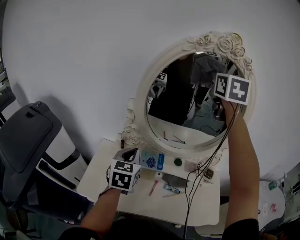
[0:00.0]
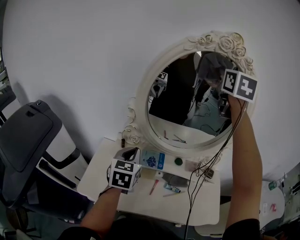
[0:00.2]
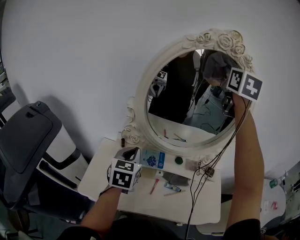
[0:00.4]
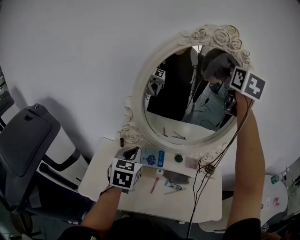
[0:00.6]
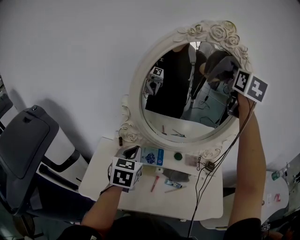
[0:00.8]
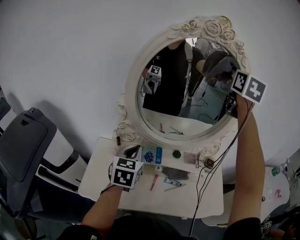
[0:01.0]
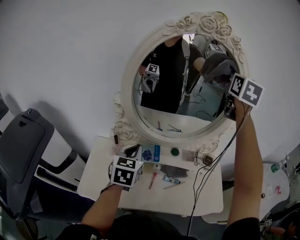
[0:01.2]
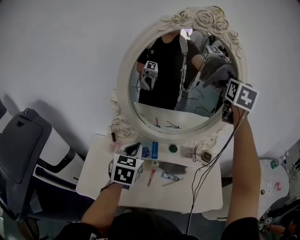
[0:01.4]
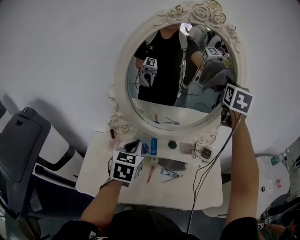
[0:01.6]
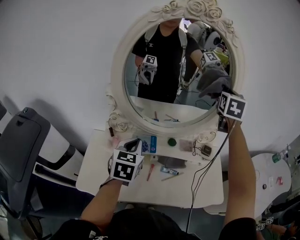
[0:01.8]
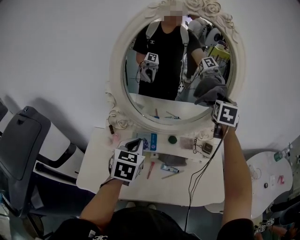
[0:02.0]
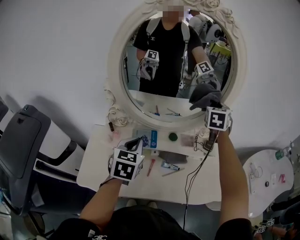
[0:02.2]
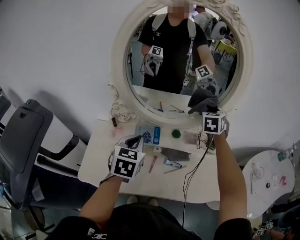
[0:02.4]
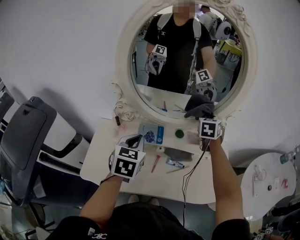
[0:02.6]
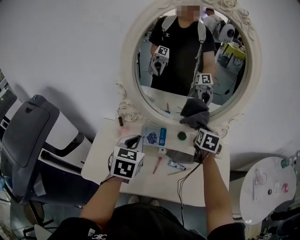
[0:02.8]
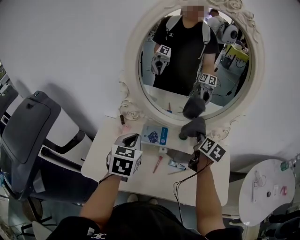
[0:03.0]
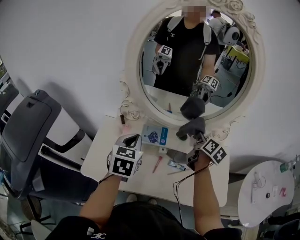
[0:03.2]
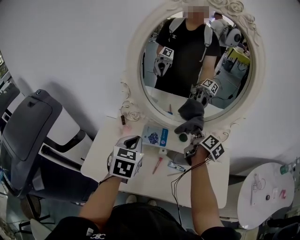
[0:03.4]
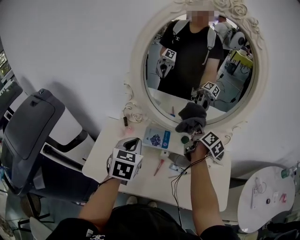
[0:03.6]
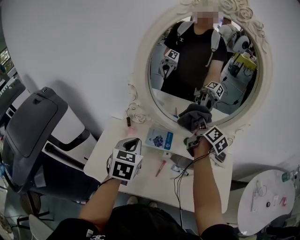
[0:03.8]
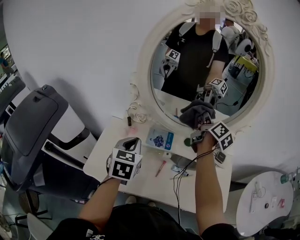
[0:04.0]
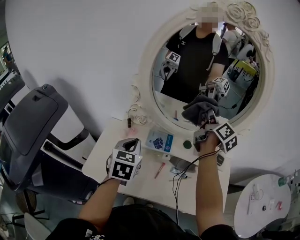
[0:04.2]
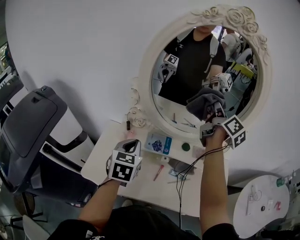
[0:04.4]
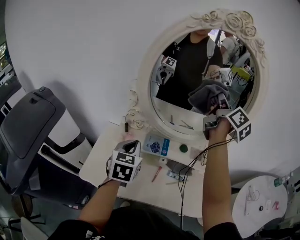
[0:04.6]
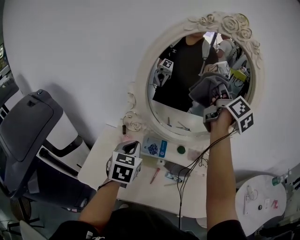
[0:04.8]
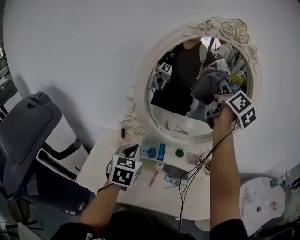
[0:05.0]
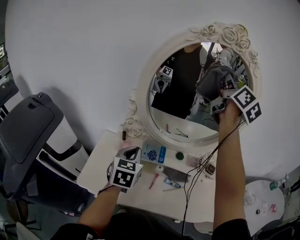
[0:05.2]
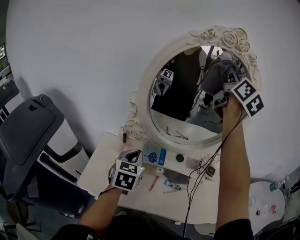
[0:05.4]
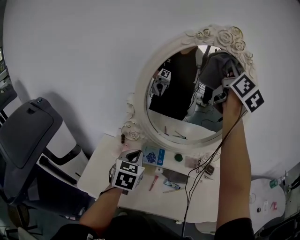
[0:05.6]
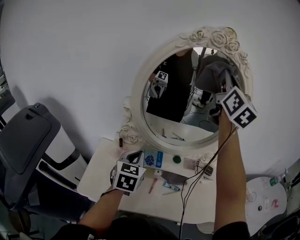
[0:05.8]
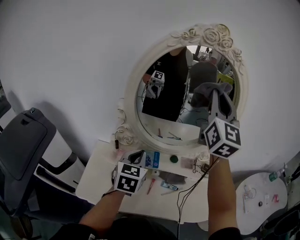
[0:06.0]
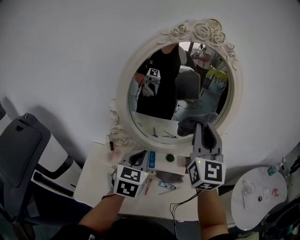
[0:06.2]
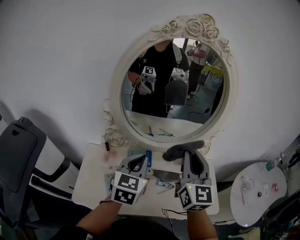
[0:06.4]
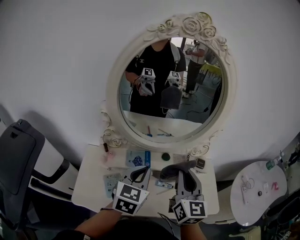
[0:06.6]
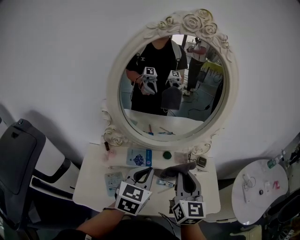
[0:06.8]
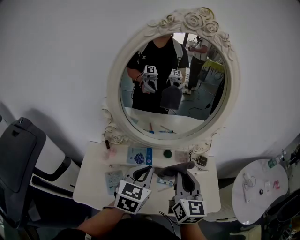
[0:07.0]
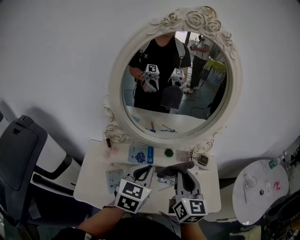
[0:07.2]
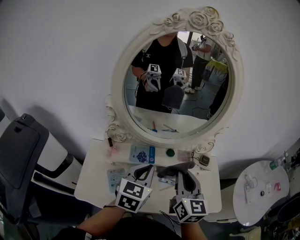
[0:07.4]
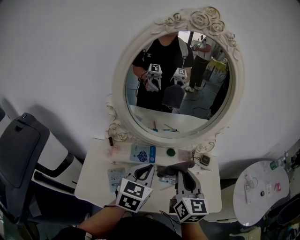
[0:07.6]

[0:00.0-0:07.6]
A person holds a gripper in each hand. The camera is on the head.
0:00.0 to 0:01.6: The left gripper goes approximately 5 cm to the right. The right gripper travels to the right and downward by some 20 cm, and turns by about 20 degrees.
0:01.6 to 0:03.0: The right gripper shifts some 35 cm downward, and changes its angle by about 40 degrees.
0:03.0 to 0:04.6: The right gripper goes some 30 cm upward, and tips its fingers upward by roughly 40 degrees.
0:04.6 to 0:06.0: The left gripper goes some 5 cm to the right; the right gripper heads upward and backward, covering about 15 cm, and rotates around the line of its fingers by some 60 degrees, counterclockwise from behind.
0:06.0 to 0:07.6: The left gripper travels to the right by approximately 10 cm; the right gripper shifts about 30 cm downward and backward, and swivels some 30 degrees.

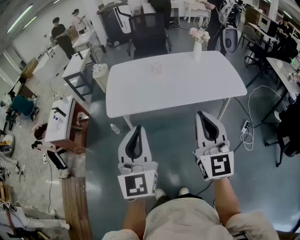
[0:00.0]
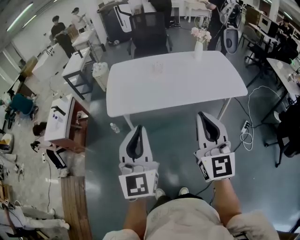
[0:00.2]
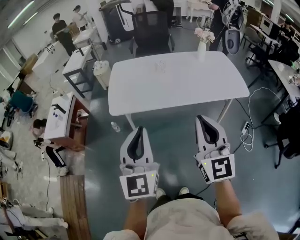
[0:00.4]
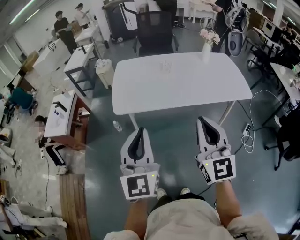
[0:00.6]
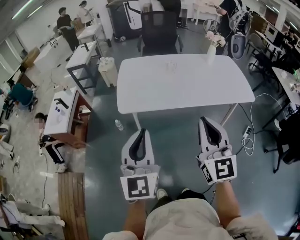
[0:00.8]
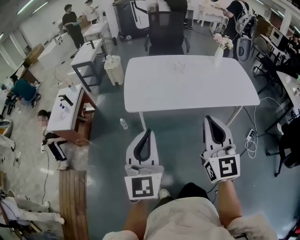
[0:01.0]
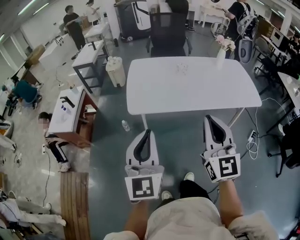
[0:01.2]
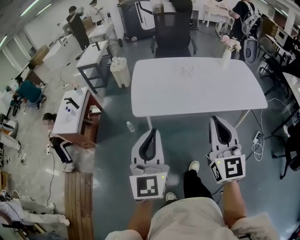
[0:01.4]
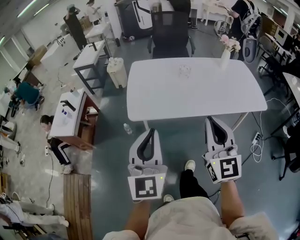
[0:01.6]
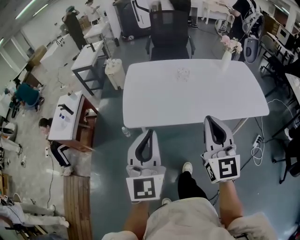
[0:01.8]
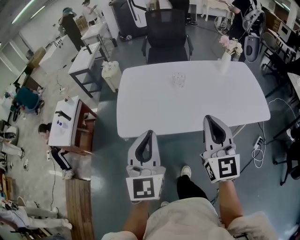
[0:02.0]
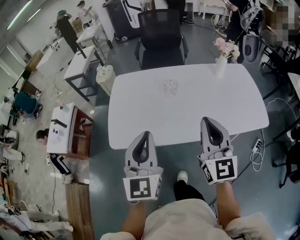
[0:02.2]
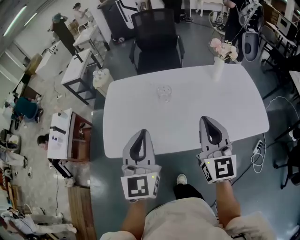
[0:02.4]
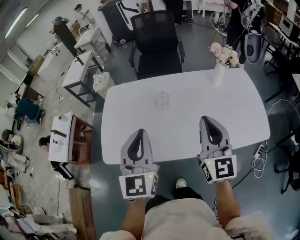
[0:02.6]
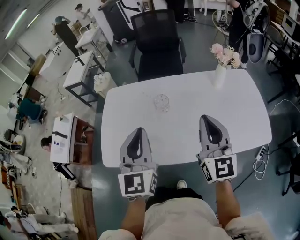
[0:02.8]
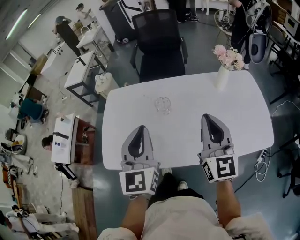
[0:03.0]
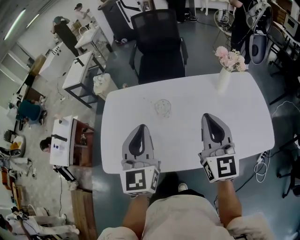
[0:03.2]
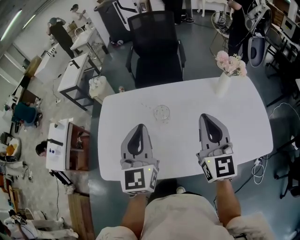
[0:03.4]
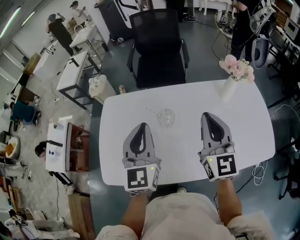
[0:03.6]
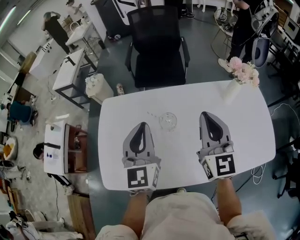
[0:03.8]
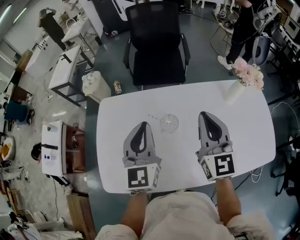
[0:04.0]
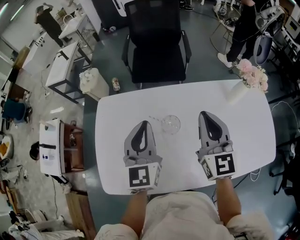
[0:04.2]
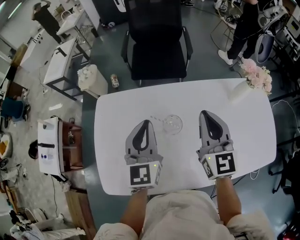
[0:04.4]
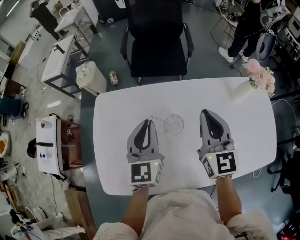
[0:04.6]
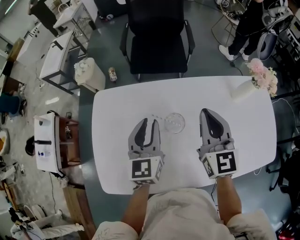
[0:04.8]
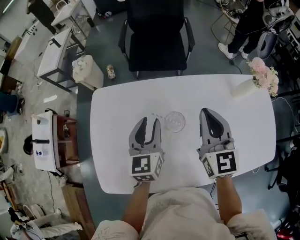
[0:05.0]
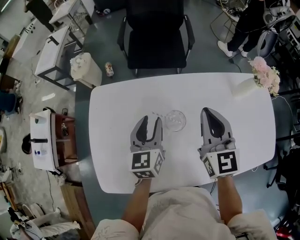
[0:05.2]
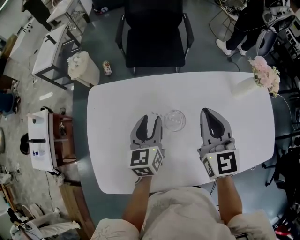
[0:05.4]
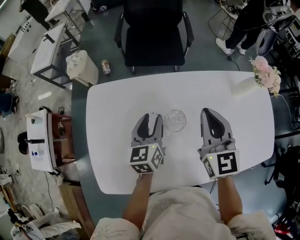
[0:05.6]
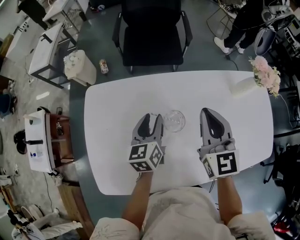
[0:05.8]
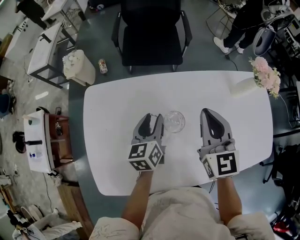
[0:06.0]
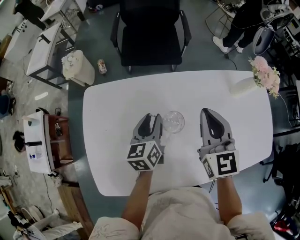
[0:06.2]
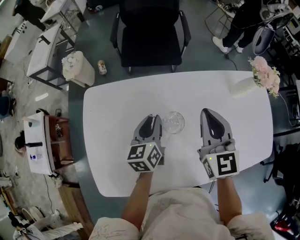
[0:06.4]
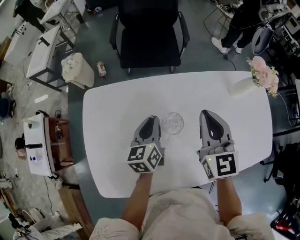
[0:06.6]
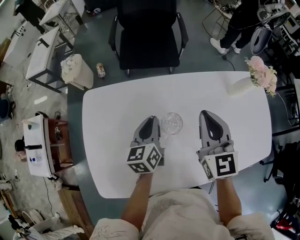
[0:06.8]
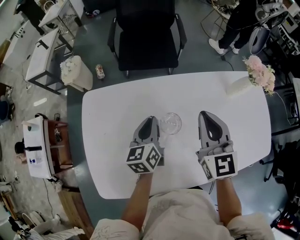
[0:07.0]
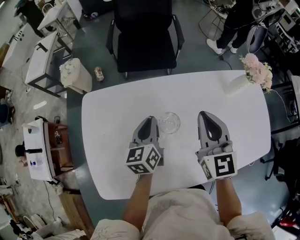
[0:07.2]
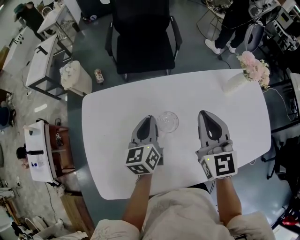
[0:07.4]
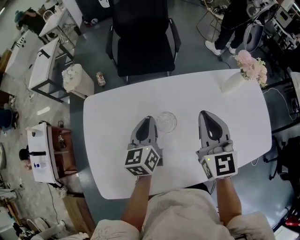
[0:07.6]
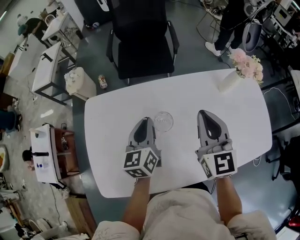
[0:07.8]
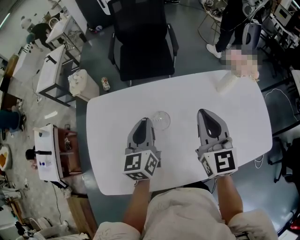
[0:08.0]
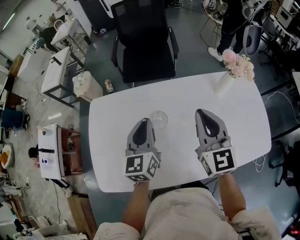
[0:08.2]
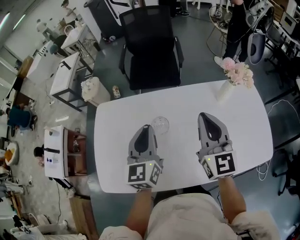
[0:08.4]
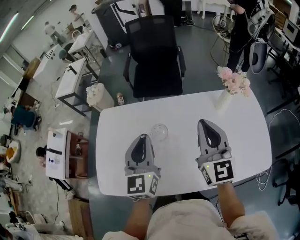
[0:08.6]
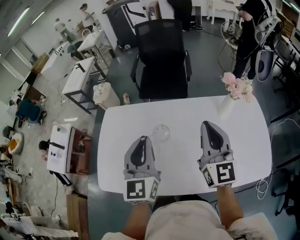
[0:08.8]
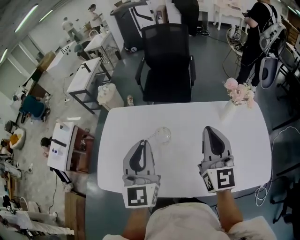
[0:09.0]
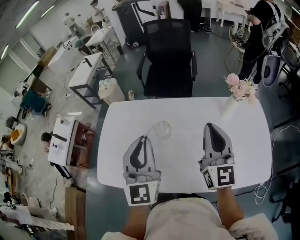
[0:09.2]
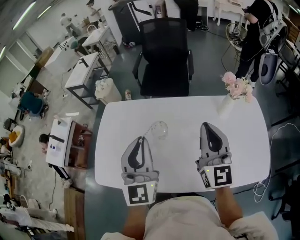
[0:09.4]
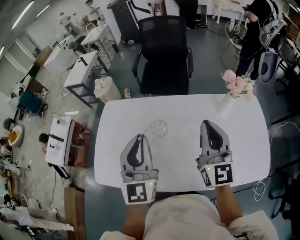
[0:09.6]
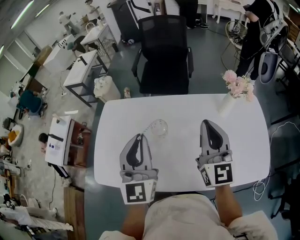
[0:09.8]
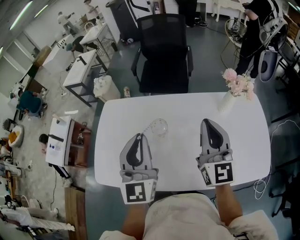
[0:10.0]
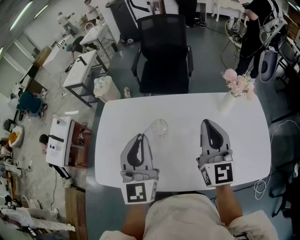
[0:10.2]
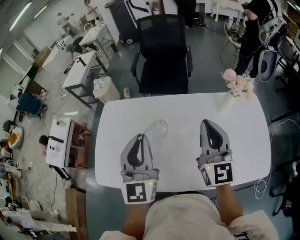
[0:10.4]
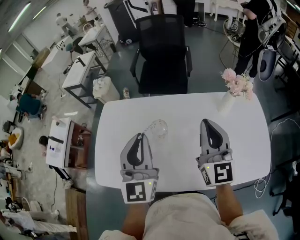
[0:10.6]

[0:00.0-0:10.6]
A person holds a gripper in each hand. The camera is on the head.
0:00.0 to 0:01.6: Both grippers travel together to the left and forward, about 15 cm.
0:01.6 to 0:03.0: The pair of grippers is taken forward and to the right, roughly 40 cm.
0:03.0 to 0:04.6: The right gripper moves forward, roughly 25 cm; the left gripper moves forward and downward, approximately 25 cm.
0:04.6 to 0:06.0: The left gripper travels downward by some 15 cm, turns by roughly 30 degrees, and opens its fingers.
0:06.0 to 0:07.6: The left gripper moves about 5 cm, and closes up. The right gripper moves some 5 cm.
0:07.6 to 0:09.0: The right gripper is displaced upward, to the right and backward by approximately 15 cm, and turns by roughly 20 degrees, while the left gripper is displaced upward and backward by about 25 cm, and swivels roughly 40 degrees.
0:09.0 to 0:10.6: The grippers make only small movements.

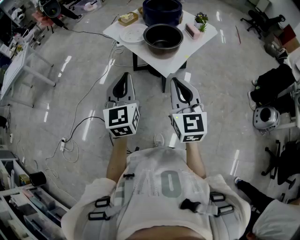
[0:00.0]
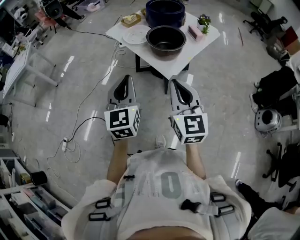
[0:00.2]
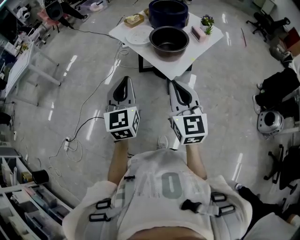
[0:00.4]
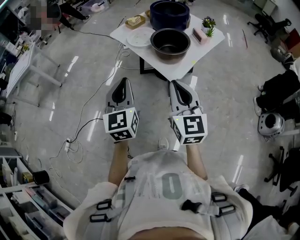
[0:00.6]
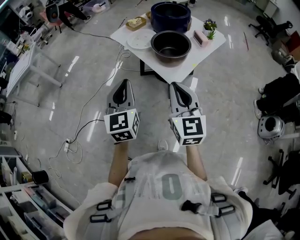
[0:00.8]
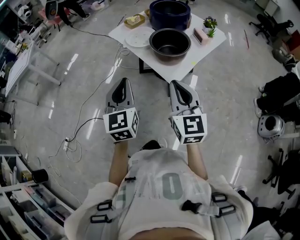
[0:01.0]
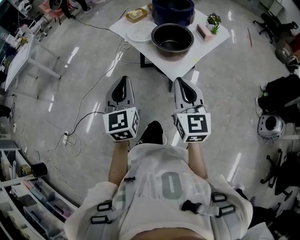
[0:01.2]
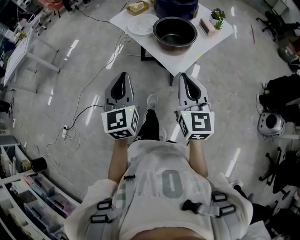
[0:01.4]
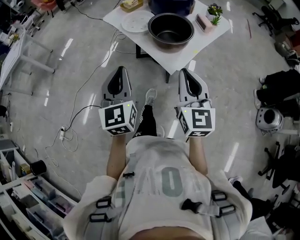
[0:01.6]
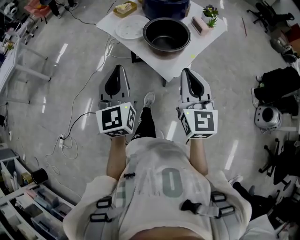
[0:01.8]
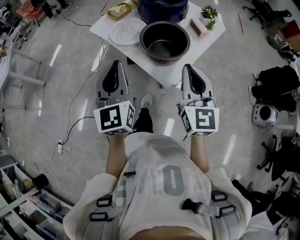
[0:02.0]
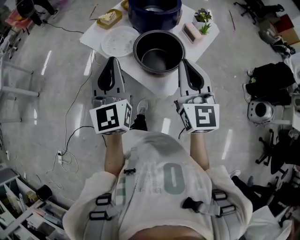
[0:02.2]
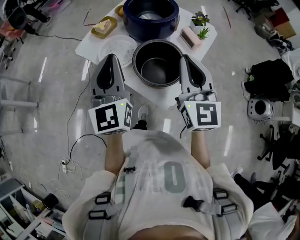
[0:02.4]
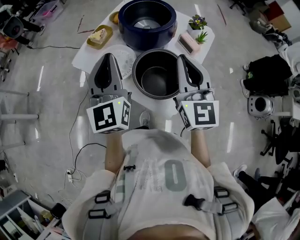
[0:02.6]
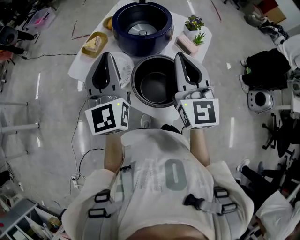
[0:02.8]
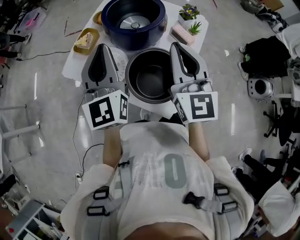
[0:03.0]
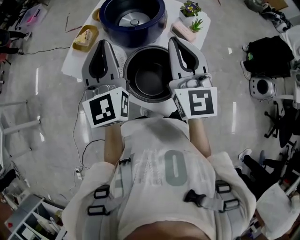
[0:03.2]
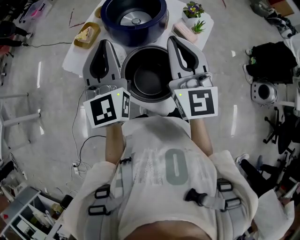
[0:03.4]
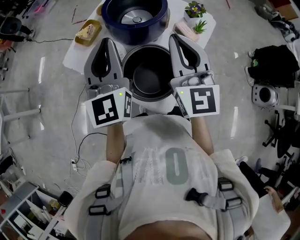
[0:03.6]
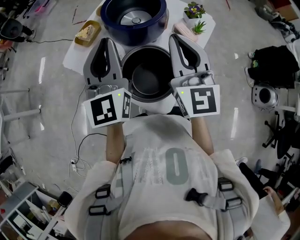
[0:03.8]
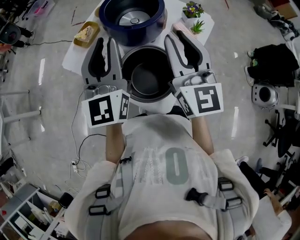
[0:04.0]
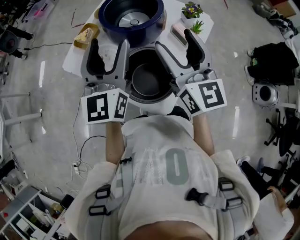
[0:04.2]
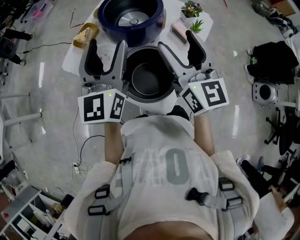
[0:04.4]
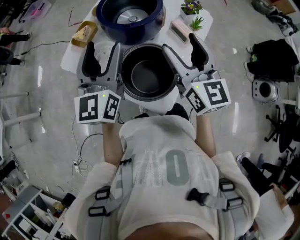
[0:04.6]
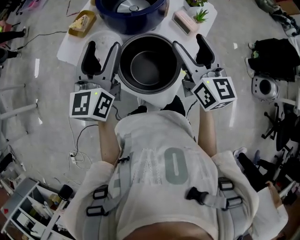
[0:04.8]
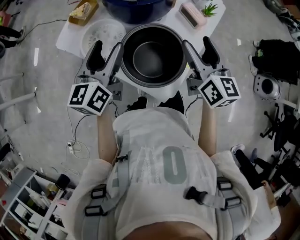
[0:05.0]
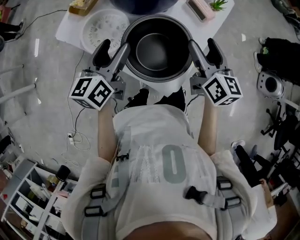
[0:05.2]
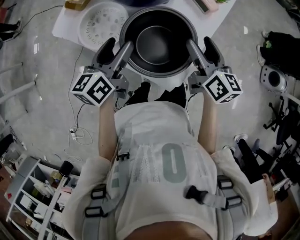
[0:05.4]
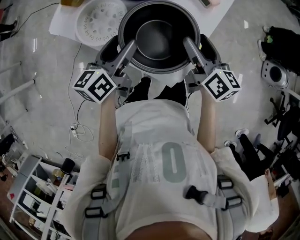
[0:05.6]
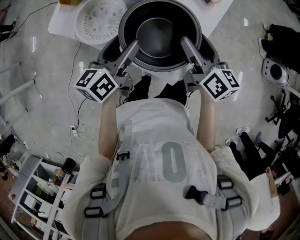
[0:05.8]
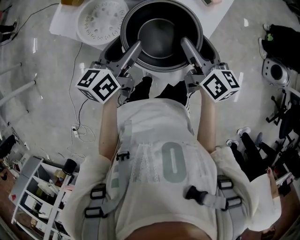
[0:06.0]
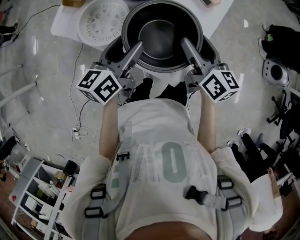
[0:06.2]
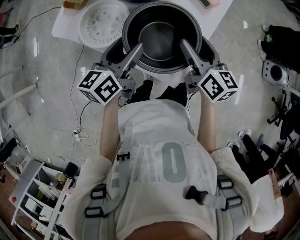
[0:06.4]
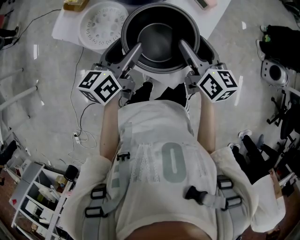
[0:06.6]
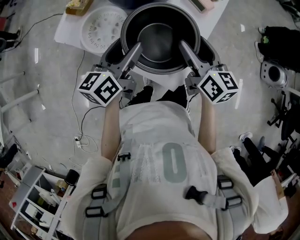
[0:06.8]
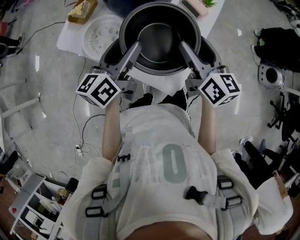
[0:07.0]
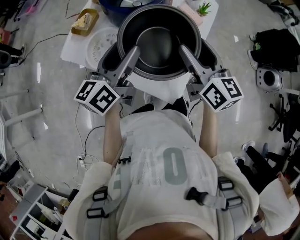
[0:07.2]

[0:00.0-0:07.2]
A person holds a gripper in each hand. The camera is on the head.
0:00.0 to 0:01.4: The right gripper travels forward by approximately 5 cm.
0:01.4 to 0:02.8: The grippers both shift forward by approximately 35 cm. The left gripper turns by some 20 degrees.
0:02.8 to 0:04.4: Both grippers move to the right, roughly 5 cm. The right gripper opens its fingers, while the left gripper opens its fingers.
0:04.4 to 0:05.8: The grippers both shift downward by approximately 20 cm. The right gripper changes its angle by roughly 40 degrees. Meanwhile the left gripper swivels approximately 50 degrees.
0:05.8 to 0:07.2: Both grippers travel together upward, roughly 10 cm.
